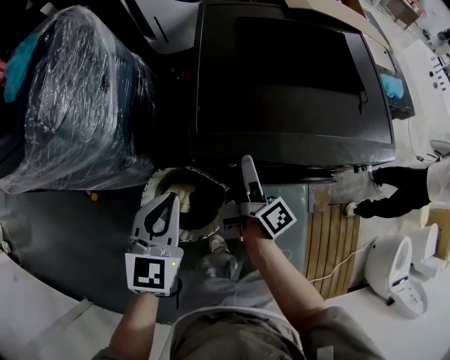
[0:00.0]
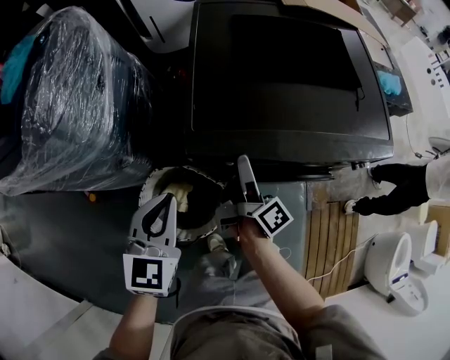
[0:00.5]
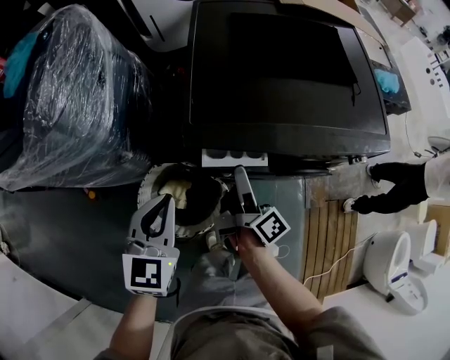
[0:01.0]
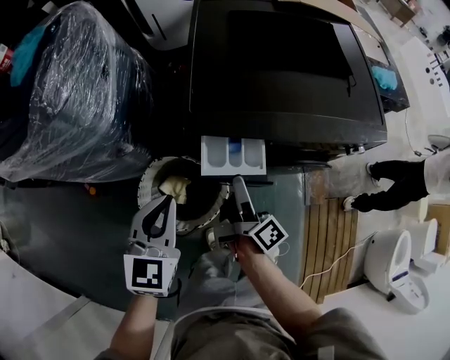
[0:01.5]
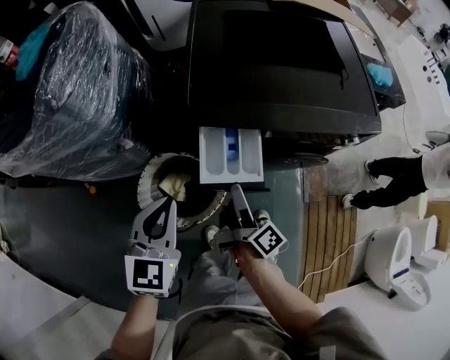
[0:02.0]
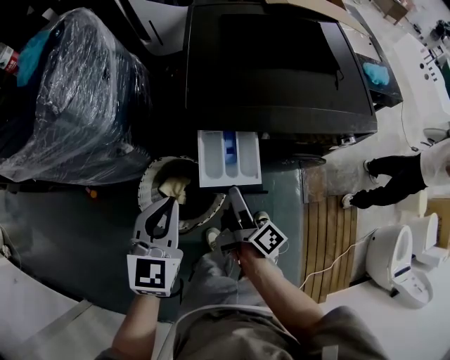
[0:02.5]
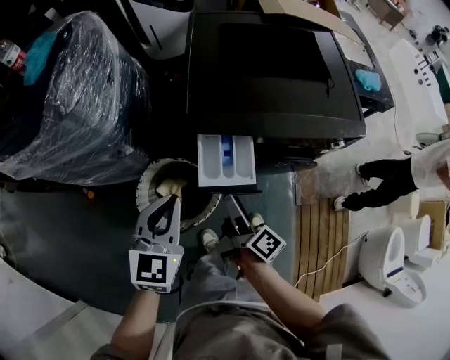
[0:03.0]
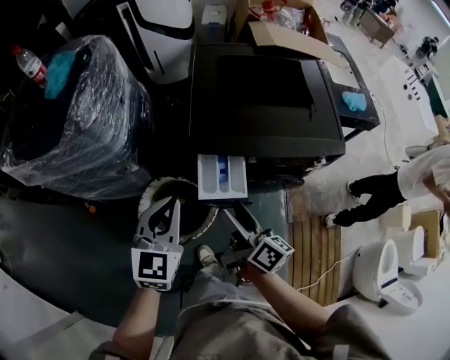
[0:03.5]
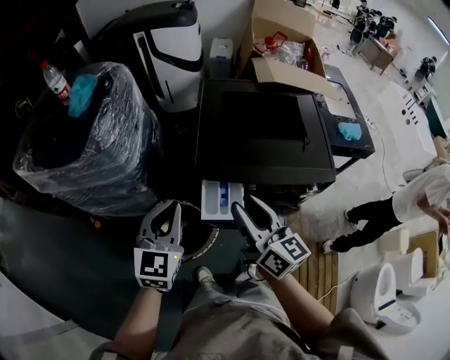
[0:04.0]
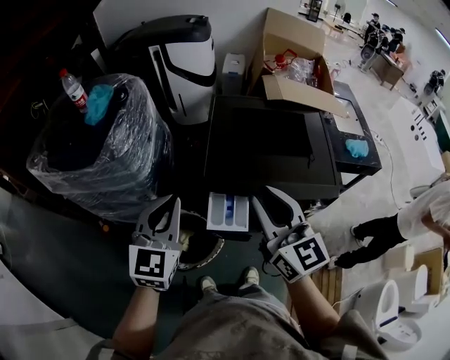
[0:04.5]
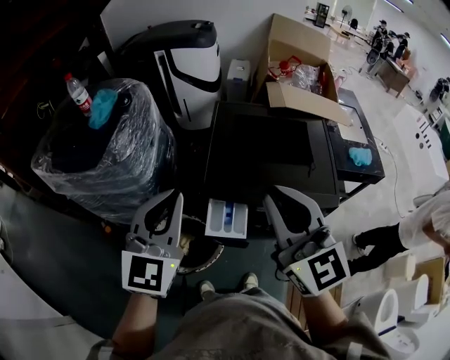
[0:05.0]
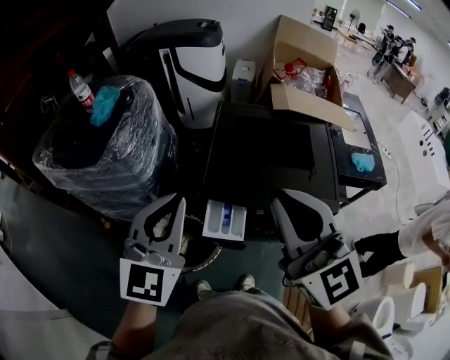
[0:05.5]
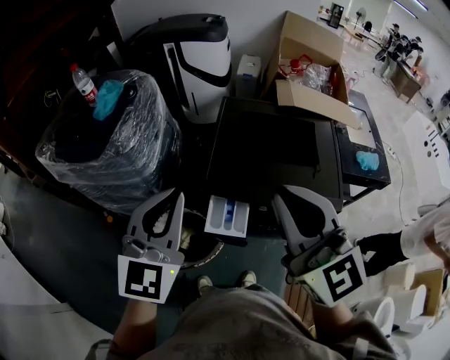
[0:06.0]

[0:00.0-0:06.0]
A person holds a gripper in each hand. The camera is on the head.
0:00.0 to 0:02.0: The right gripper goes some 15 cm backward. The left gripper moves backward, approximately 10 cm.
0:02.0 to 0:04.0: The left gripper is displaced upward by roughly 15 cm. Meanwhile the right gripper is displaced upward by about 25 cm, rolls counterclockwise, seen from behind, by approximately 50 degrees, and closes its fingers.
0:04.0 to 0:06.0: The two grippers go about 20 cm upward. The right gripper turns by approximately 40 degrees, and closes its fingers.

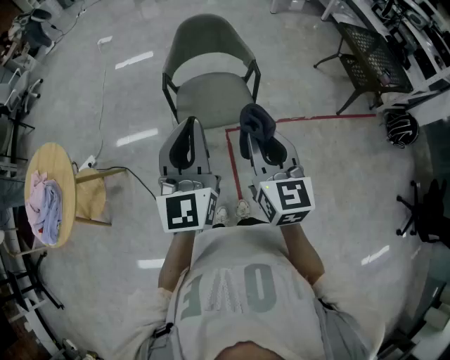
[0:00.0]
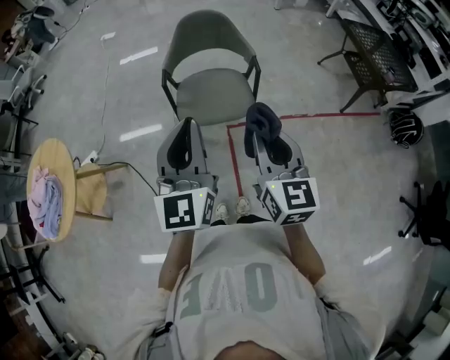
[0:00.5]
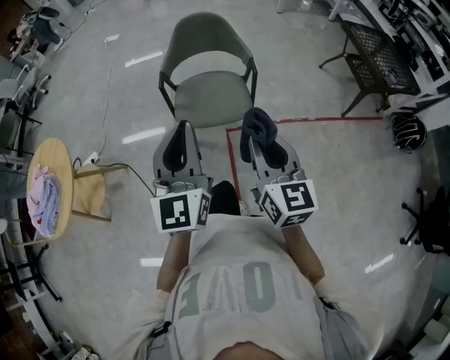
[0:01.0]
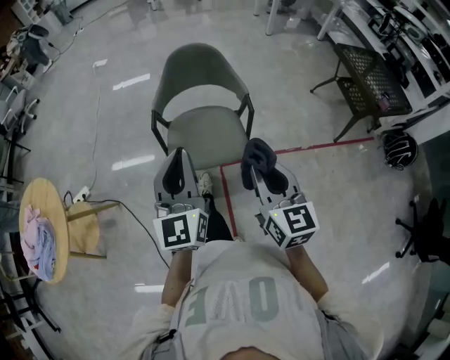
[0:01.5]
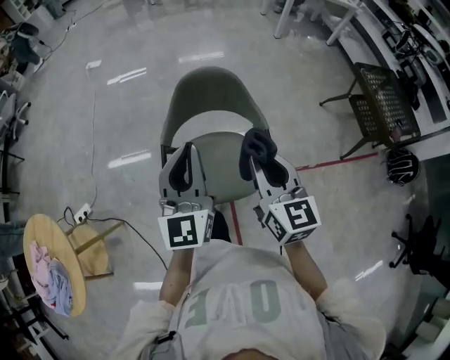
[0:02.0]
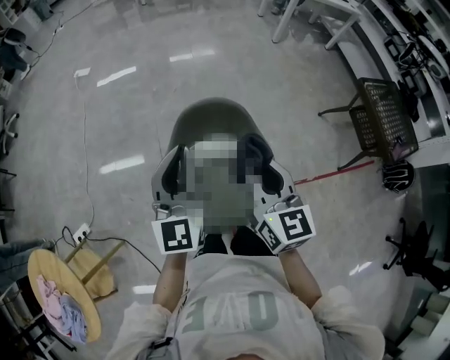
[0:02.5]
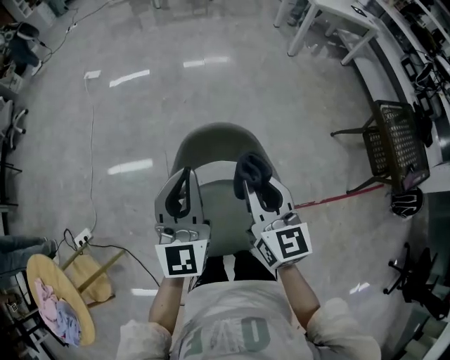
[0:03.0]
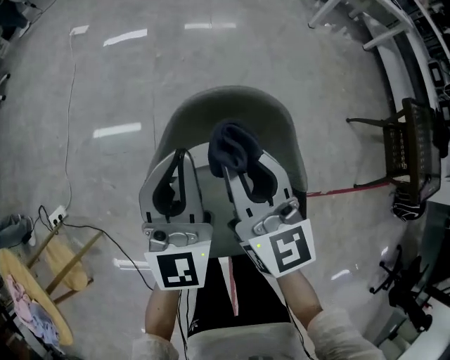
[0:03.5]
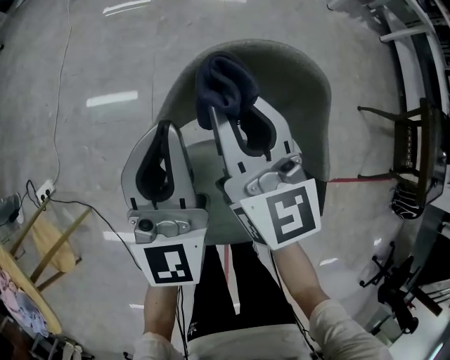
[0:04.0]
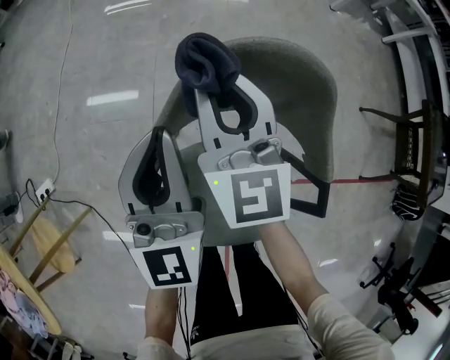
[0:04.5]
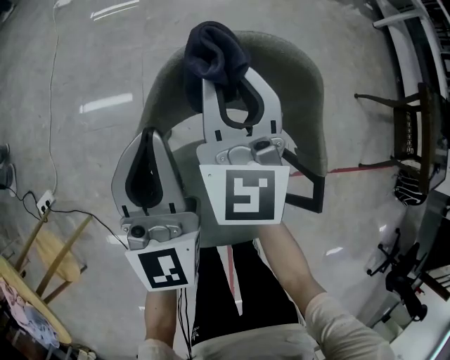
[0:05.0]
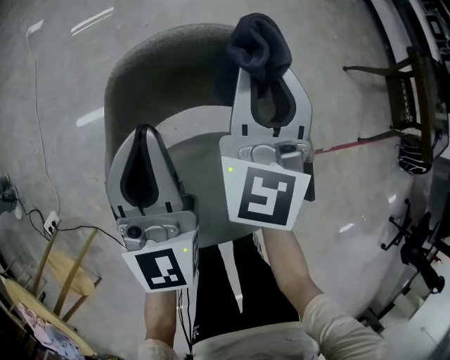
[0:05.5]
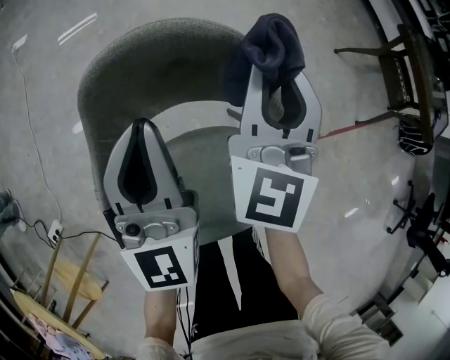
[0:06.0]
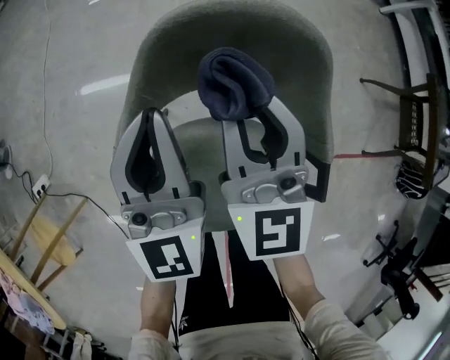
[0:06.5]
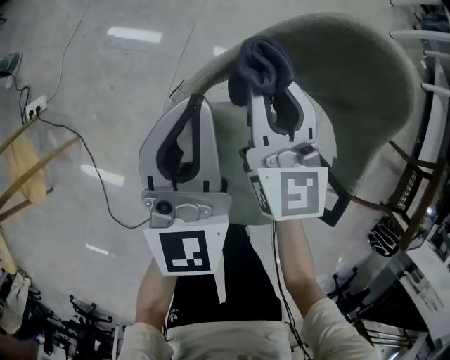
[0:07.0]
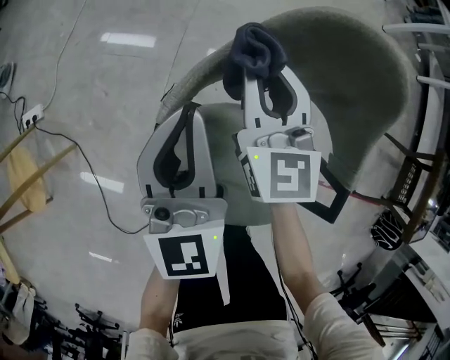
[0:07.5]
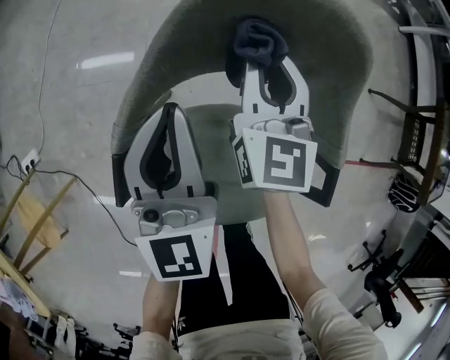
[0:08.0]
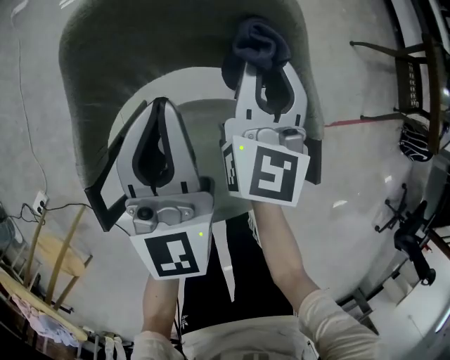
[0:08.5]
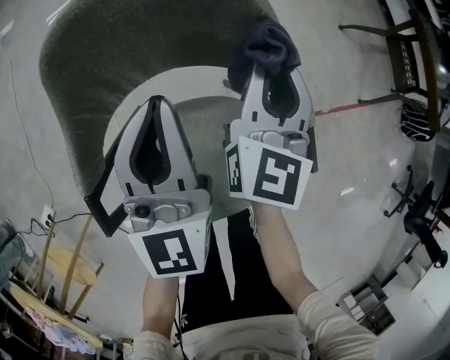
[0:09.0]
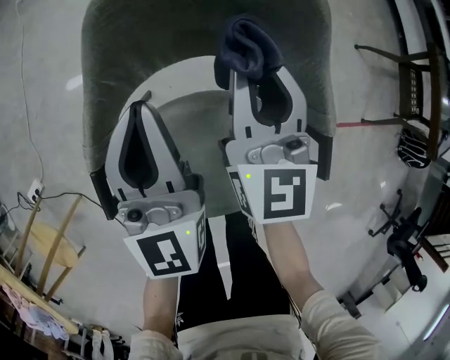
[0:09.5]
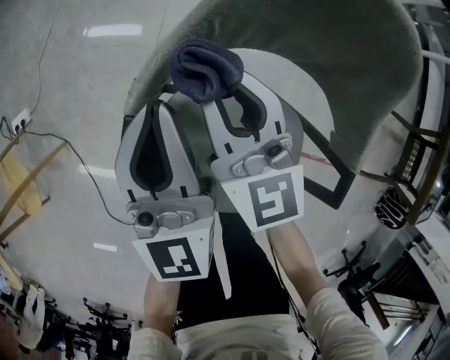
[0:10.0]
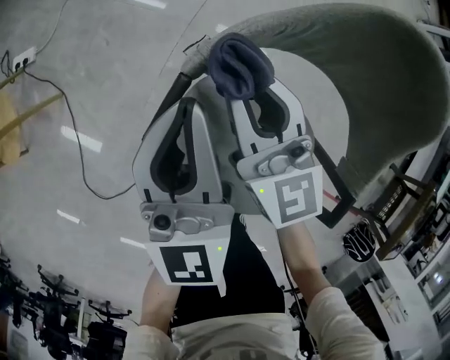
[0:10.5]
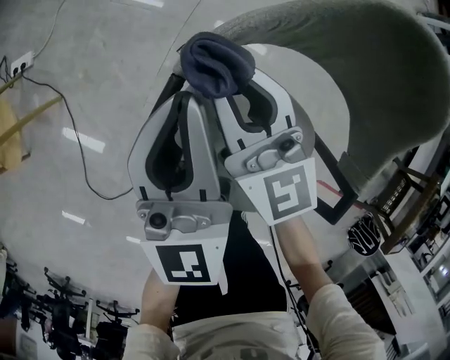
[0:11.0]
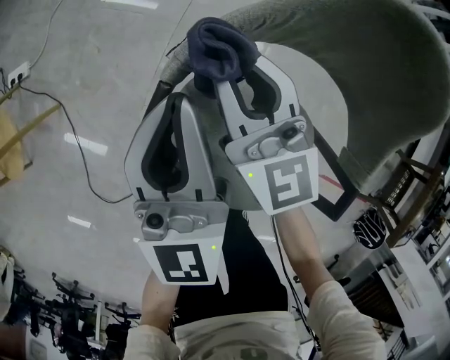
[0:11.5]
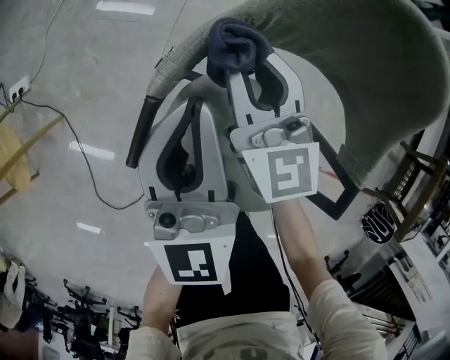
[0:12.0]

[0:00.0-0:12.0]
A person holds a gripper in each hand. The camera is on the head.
0:00.0 to 0:02.0: The two grippers go roughly 35 cm forward.
0:02.0 to 0:04.0: Both grippers move forward and downward, roughly 35 cm.
0:04.0 to 0:06.0: The right gripper changes place by some 20 cm, and turns by some 40 degrees; the left gripper moves about 10 cm.
0:06.0 to 0:08.0: The right gripper turns by about 30 degrees.
0:08.0 to 0:10.0: The right gripper shifts by roughly 15 cm, and changes its angle by some 30 degrees, while the left gripper changes place by approximately 10 cm.

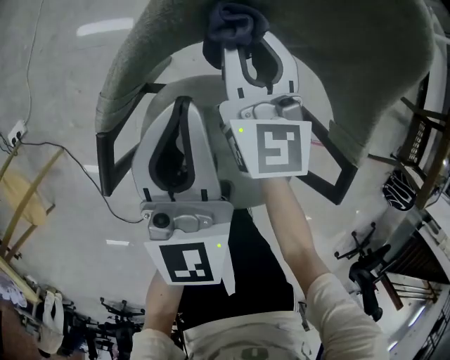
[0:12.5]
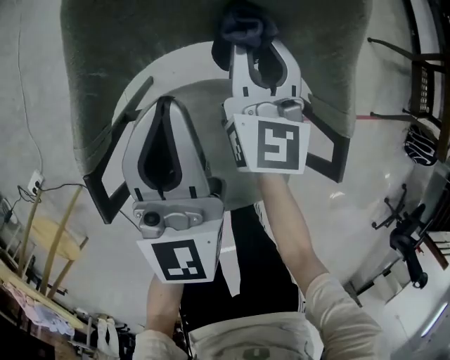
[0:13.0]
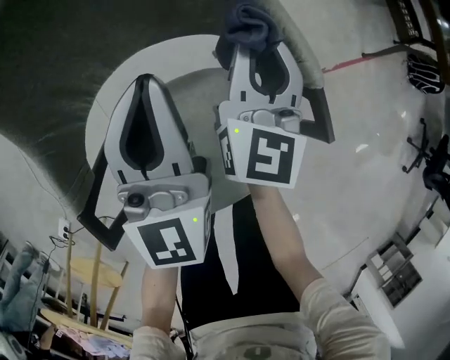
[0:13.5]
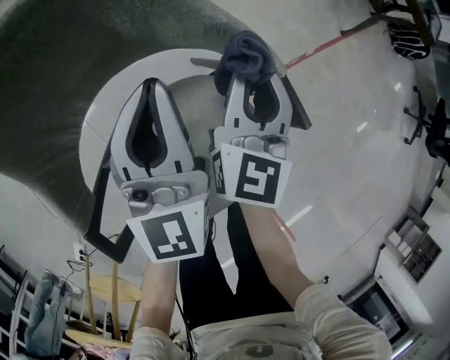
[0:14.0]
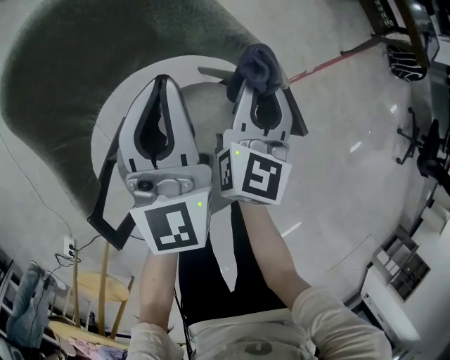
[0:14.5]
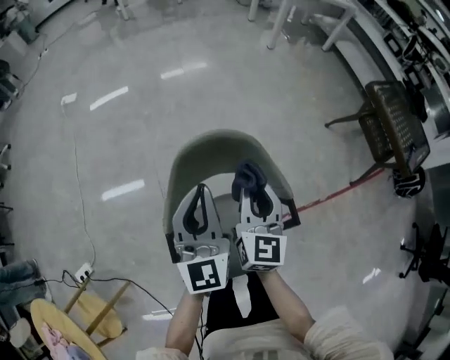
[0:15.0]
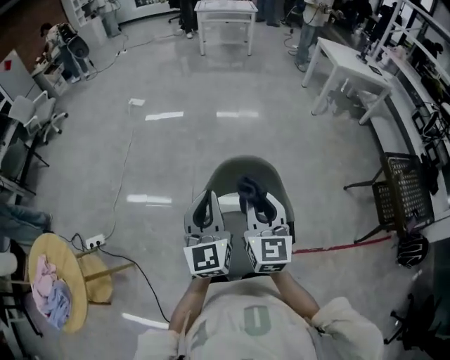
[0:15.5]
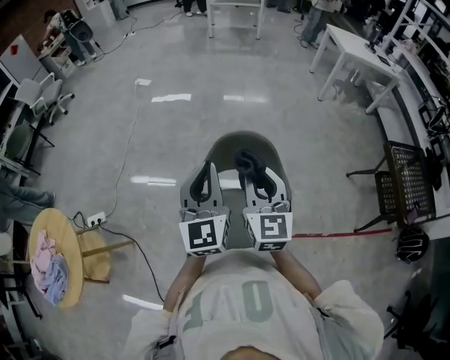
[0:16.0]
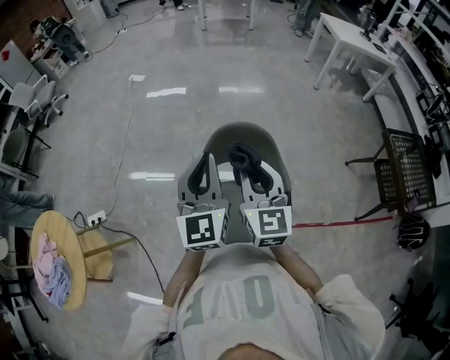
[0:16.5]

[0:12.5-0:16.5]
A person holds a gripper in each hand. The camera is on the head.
0:12.5 to 0:14.5: The left gripper moves about 20 cm, and swivels roughly 40 degrees. Meanwhile the right gripper moves approximately 30 cm, and swivels some 60 degrees.
0:14.5 to 0:16.5: The grippers both shift upward by about 35 cm. The right gripper changes its angle by approximately 60 degrees, while the left gripper swivels some 30 degrees.

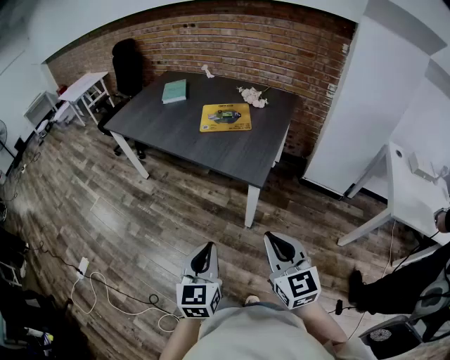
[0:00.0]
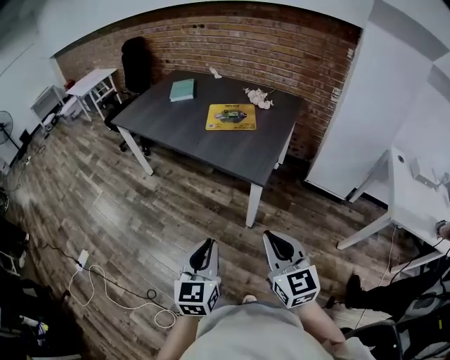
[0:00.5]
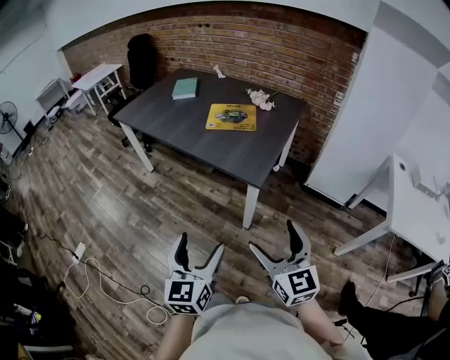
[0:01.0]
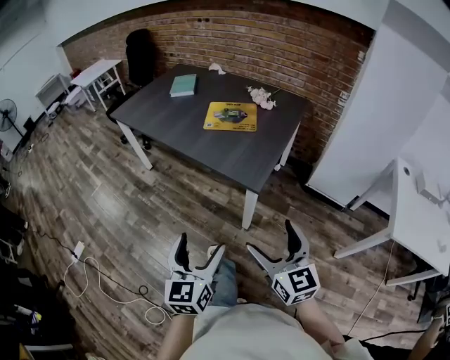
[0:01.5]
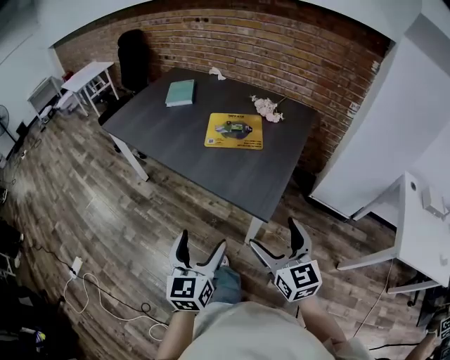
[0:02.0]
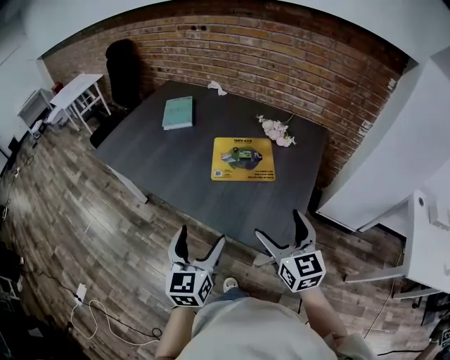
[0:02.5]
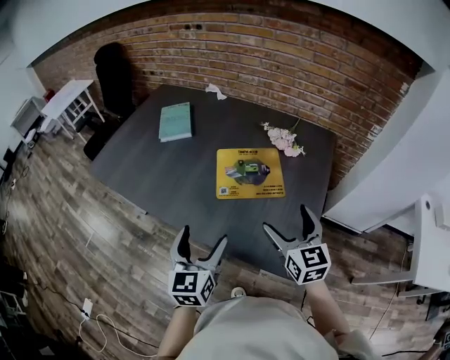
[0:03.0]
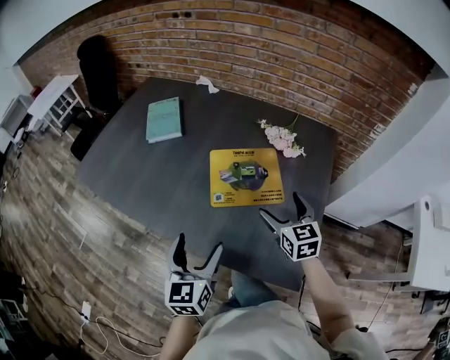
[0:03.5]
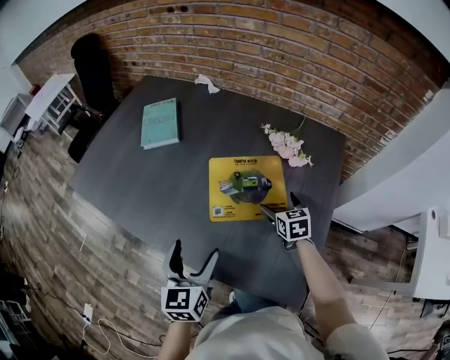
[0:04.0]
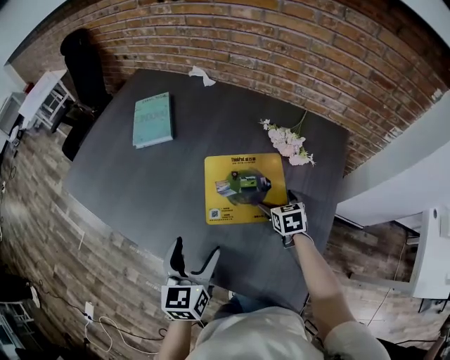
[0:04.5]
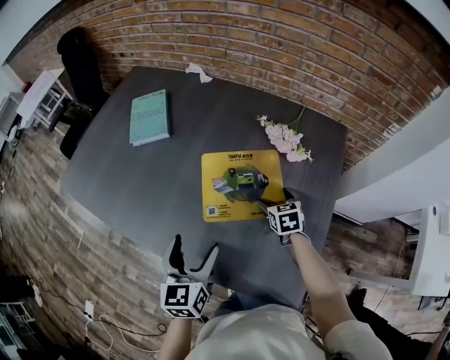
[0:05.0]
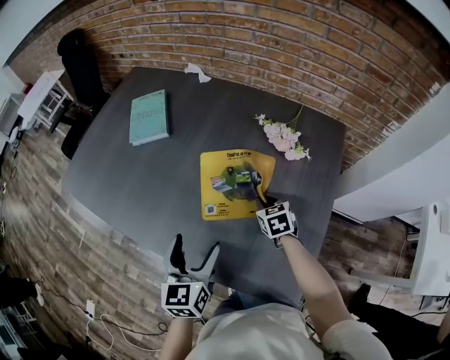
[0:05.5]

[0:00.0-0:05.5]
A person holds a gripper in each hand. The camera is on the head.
0:00.0 to 0:02.0: The two grippers go approximately 15 cm forward. The left gripper opens its fingers. Meanwhile the right gripper opens.
0:02.0 to 0:03.5: The two grippers go roughly 40 cm forward.
0:03.5 to 0:05.5: The left gripper goes approximately 10 cm forward. The right gripper heads downward and forward, covering roughly 20 cm, swivels roughly 20 degrees, and closes.
